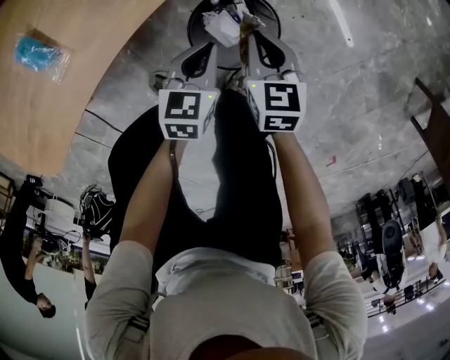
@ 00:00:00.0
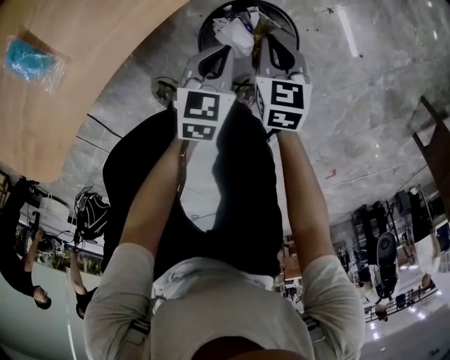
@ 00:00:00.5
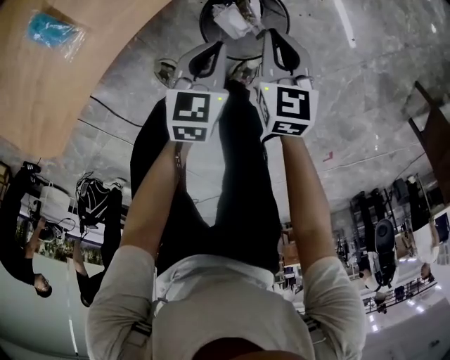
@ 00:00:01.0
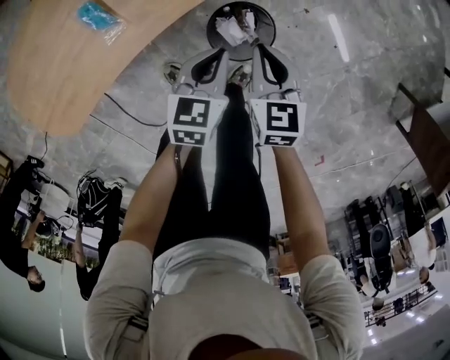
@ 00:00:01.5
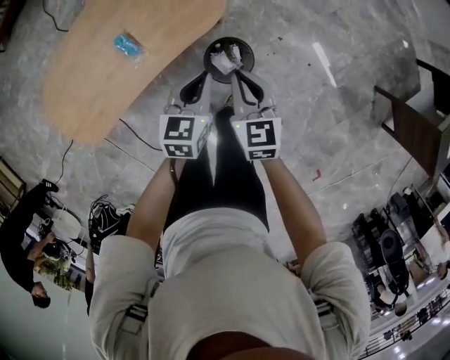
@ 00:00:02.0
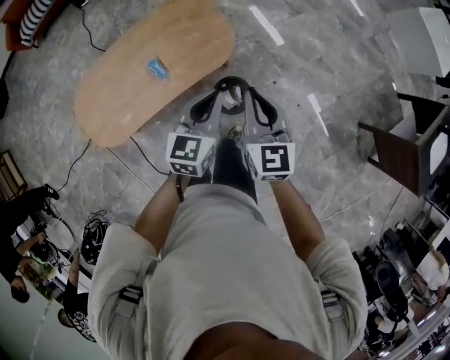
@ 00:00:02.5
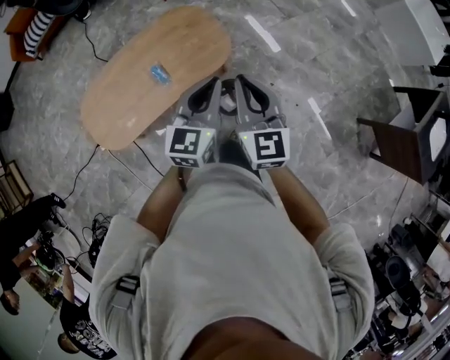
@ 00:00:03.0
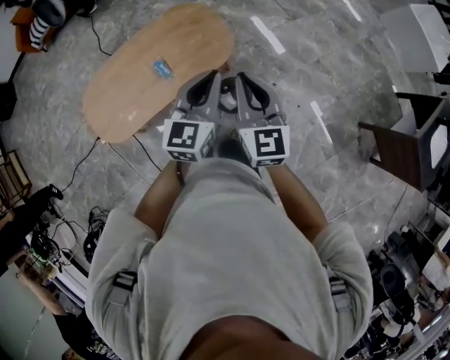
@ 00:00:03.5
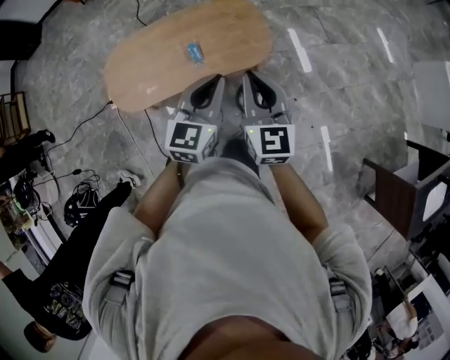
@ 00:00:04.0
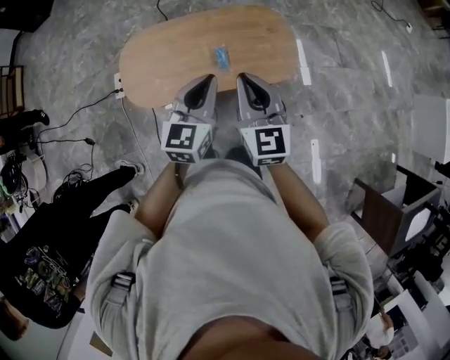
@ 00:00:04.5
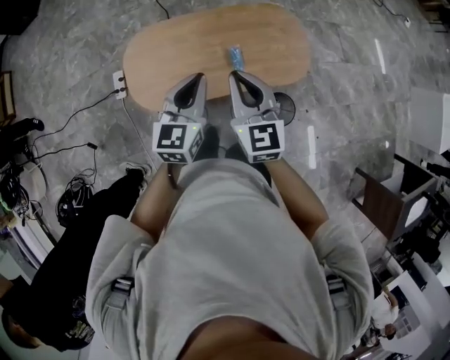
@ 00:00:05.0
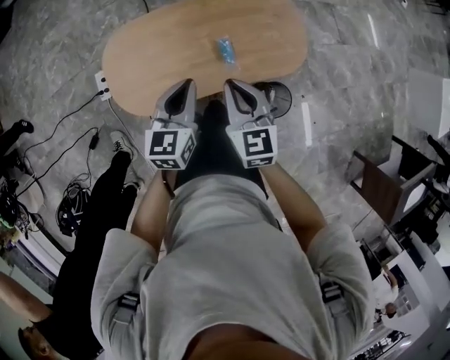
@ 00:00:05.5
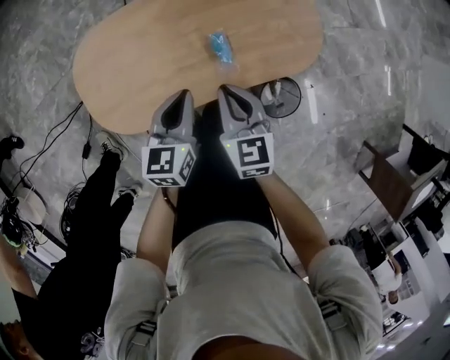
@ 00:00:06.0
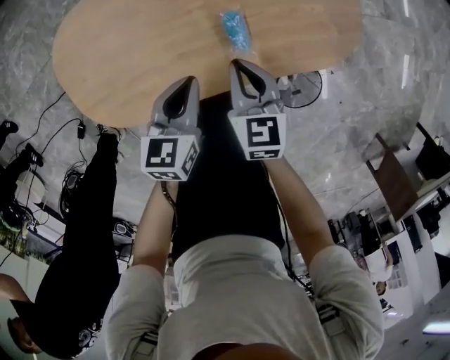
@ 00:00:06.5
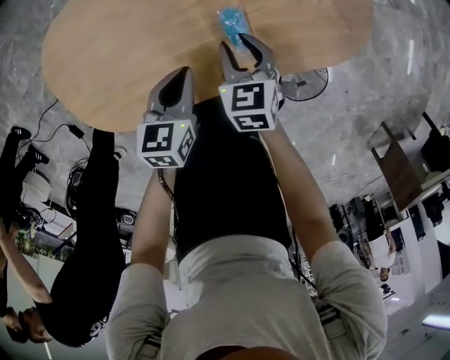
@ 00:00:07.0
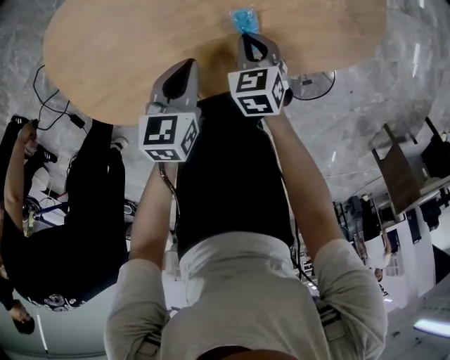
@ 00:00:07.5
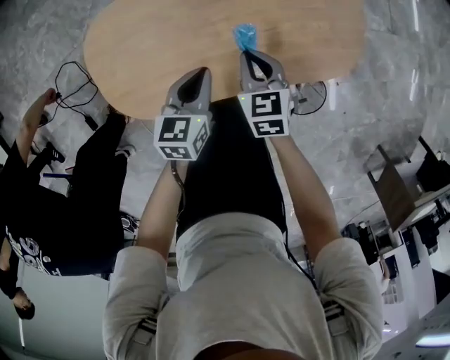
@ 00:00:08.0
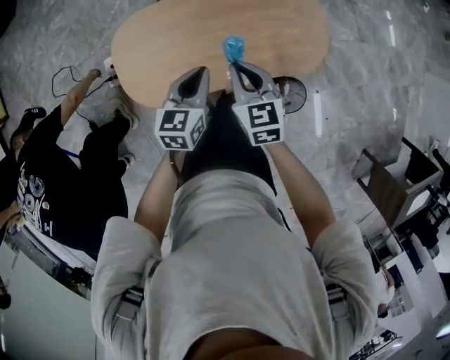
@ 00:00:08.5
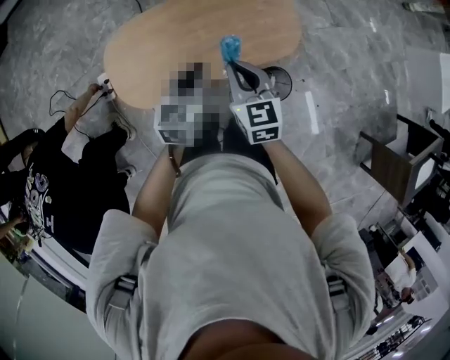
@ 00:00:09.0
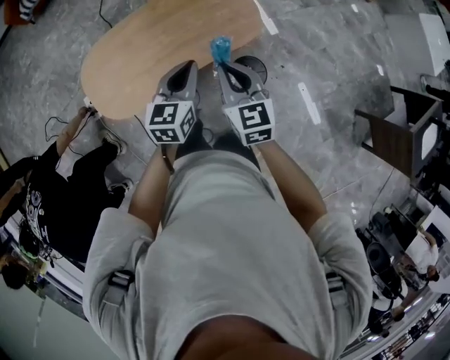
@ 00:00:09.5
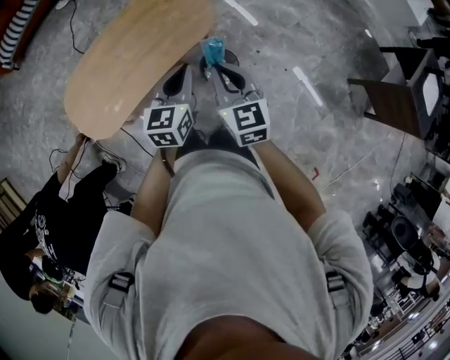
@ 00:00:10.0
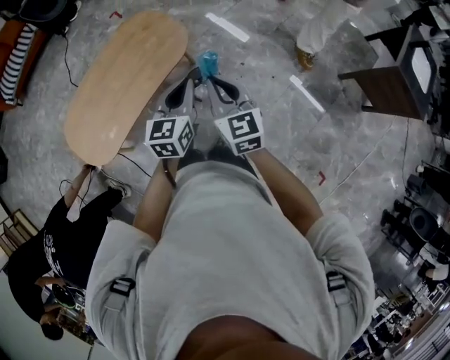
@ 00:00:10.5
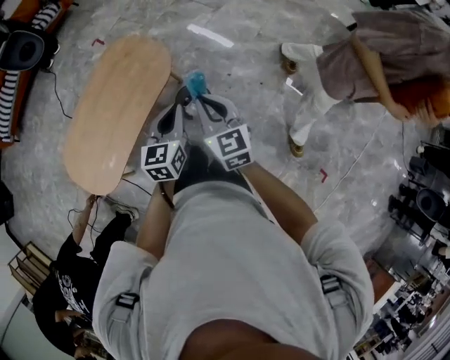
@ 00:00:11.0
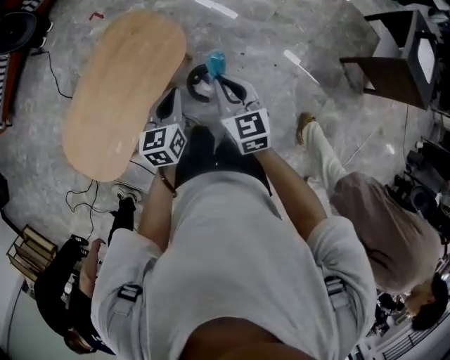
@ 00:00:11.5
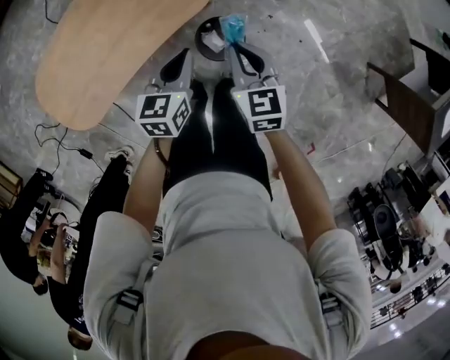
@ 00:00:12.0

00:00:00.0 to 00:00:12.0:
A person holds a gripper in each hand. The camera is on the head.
00:00:00.0 to 00:00:02.0: The two grippers go roughly 35 cm upward.
00:00:02.0 to 00:00:04.0: Both grippers move upward, roughly 30 cm. The left gripper swivels about 30 degrees, while the right gripper changes its angle by about 30 degrees.
00:00:04.0 to 00:00:06.0: The left gripper moves to the left, downward and forward, about 40 cm, and rotates some 30 degrees. Meanwhile the right gripper goes approximately 40 cm downward, to the left and forward, and rotates roughly 30 degrees.
00:00:06.0 to 00:00:08.0: The right gripper moves downward and forward, roughly 10 cm, and opens, then closes once more; the left gripper travels downward by roughly 5 cm.
00:00:08.0 to 00:00:10.0: The right gripper travels upward, to the right and backward by about 50 cm, and rotates approximately 40 degrees. The left gripper heads to the right, upward and backward, covering some 50 cm, and changes its angle by approximately 30 degrees.
00:00:10.0 to 00:00:12.0: The grippers both shift downward and forward by roughly 20 cm.

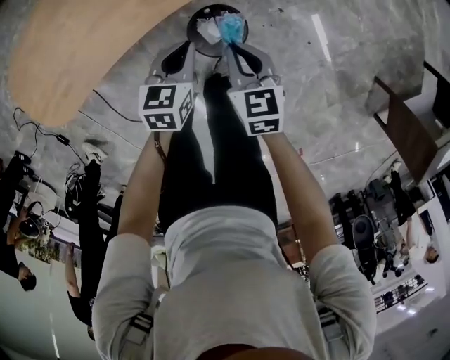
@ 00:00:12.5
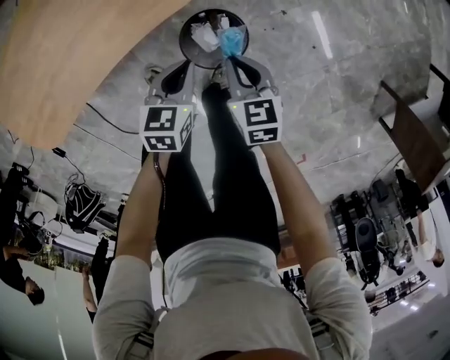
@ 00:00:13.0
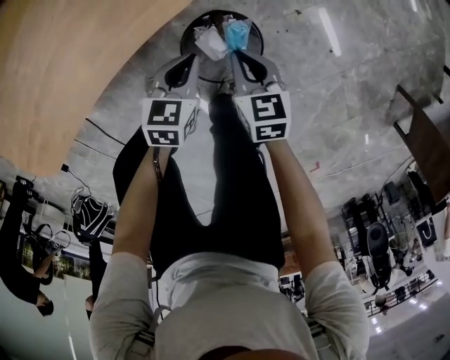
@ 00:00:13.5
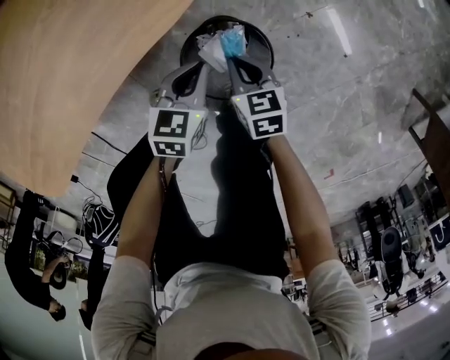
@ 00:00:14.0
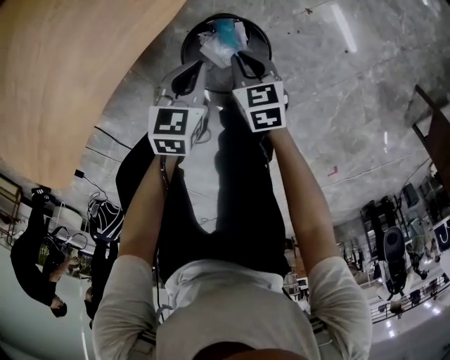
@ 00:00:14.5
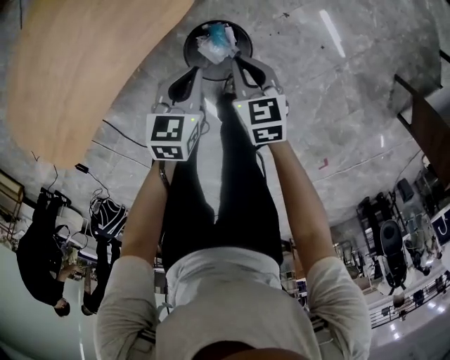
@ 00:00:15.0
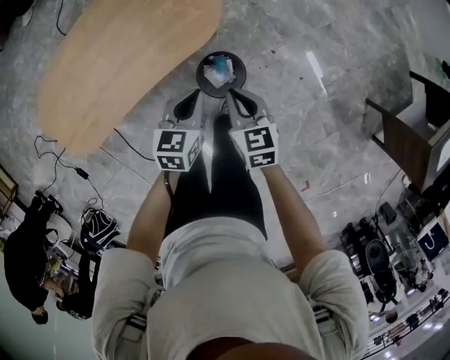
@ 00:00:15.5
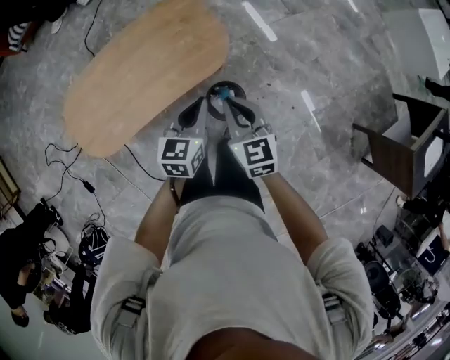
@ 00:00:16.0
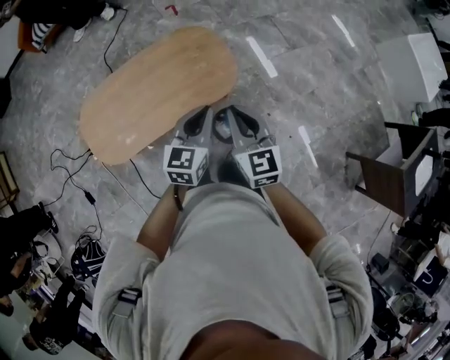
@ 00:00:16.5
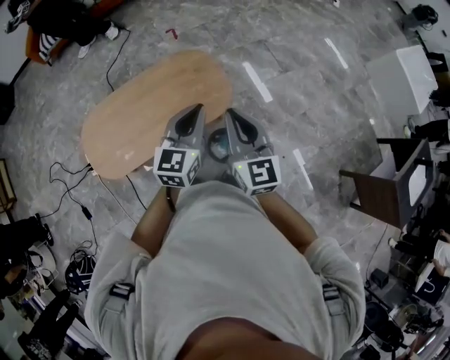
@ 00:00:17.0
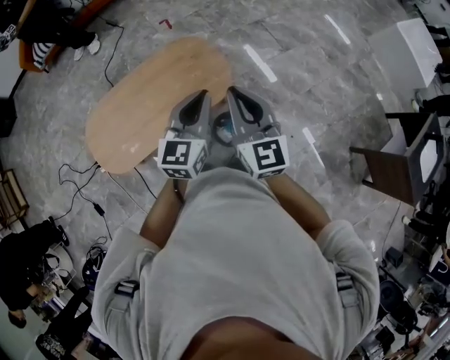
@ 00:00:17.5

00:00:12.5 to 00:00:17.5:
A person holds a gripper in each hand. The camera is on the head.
00:00:12.5 to 00:00:15.0: The right gripper moves downward, some 10 cm. Meanwhile the left gripper goes downward and returns, approximately 25 cm each way.
00:00:15.0 to 00:00:17.5: Both grippers travel together upward, about 60 cm. The left gripper tips its fingers upward by some 40 degrees. Meanwhile the right gripper angles its fingers upward, by approximately 40 degrees.

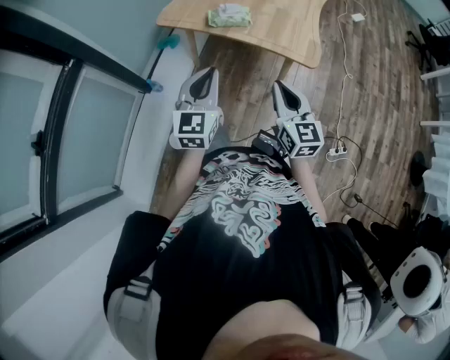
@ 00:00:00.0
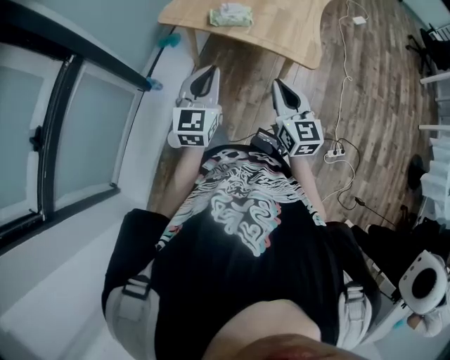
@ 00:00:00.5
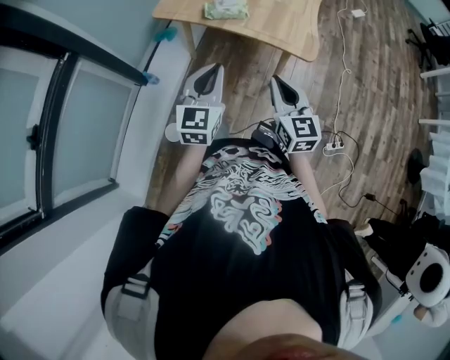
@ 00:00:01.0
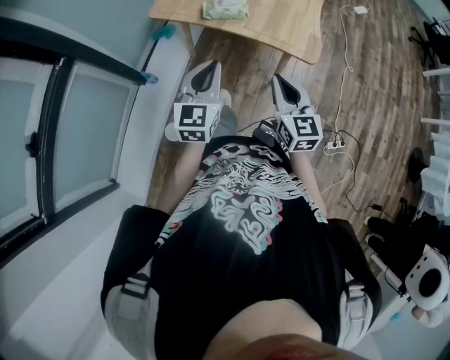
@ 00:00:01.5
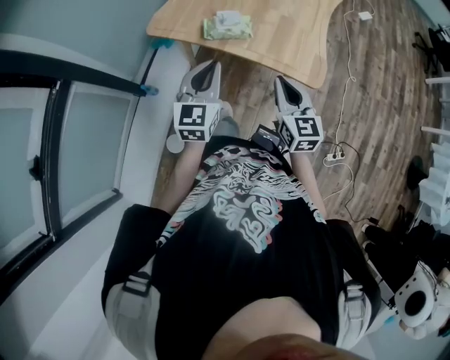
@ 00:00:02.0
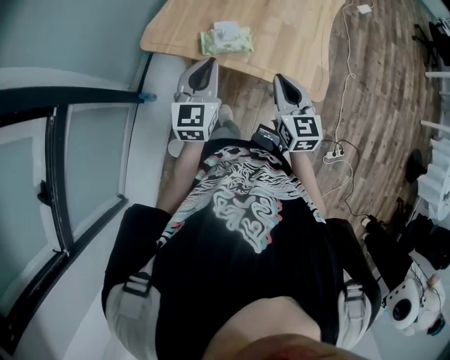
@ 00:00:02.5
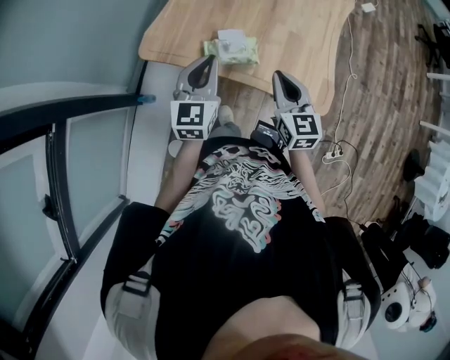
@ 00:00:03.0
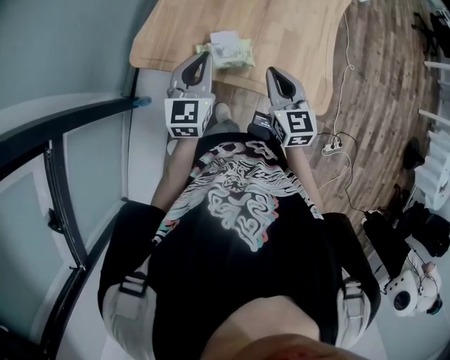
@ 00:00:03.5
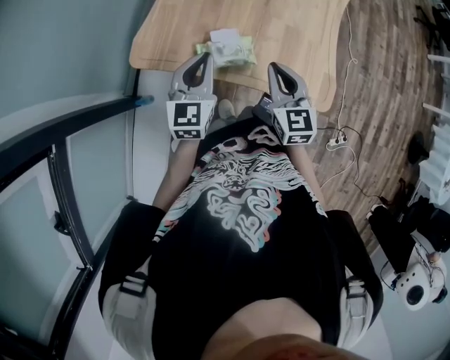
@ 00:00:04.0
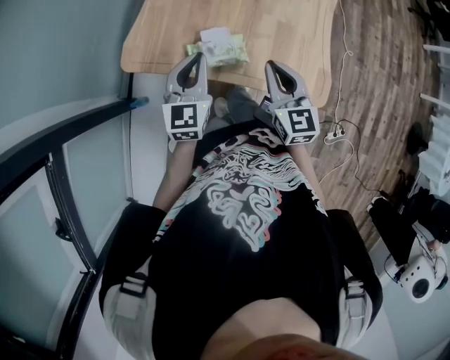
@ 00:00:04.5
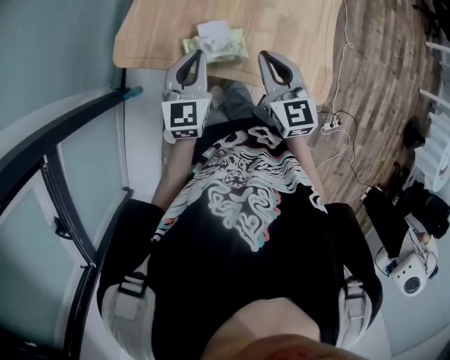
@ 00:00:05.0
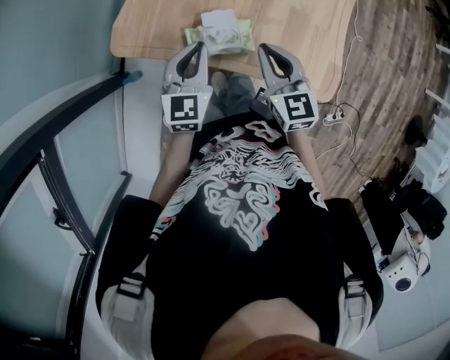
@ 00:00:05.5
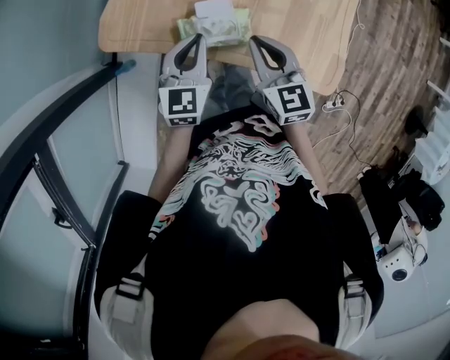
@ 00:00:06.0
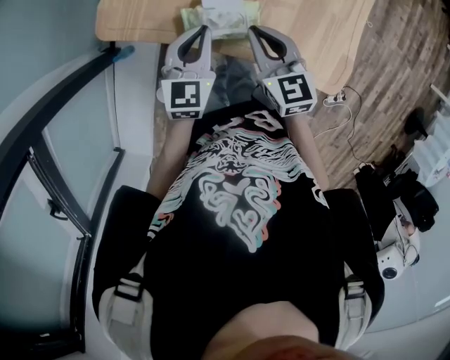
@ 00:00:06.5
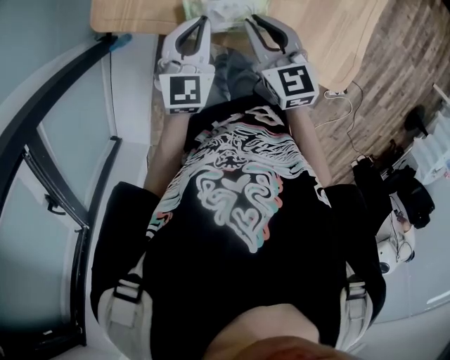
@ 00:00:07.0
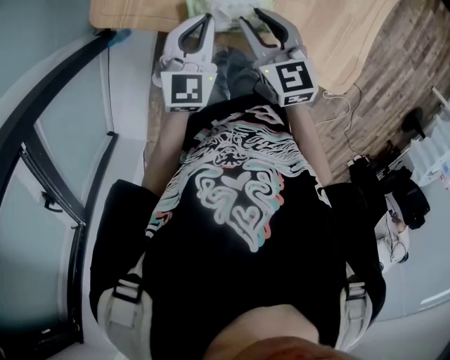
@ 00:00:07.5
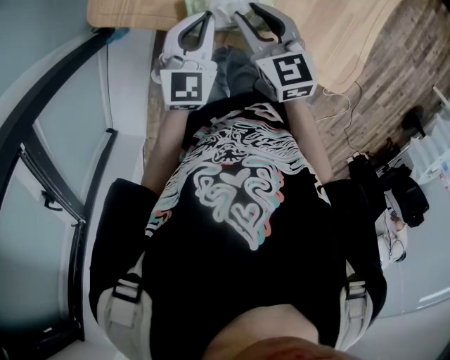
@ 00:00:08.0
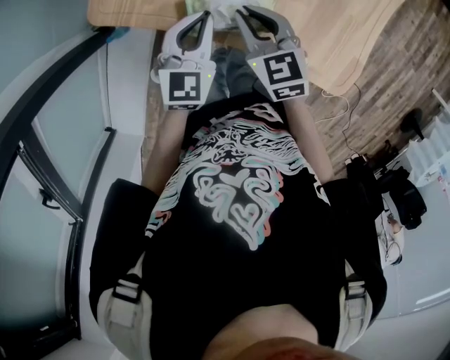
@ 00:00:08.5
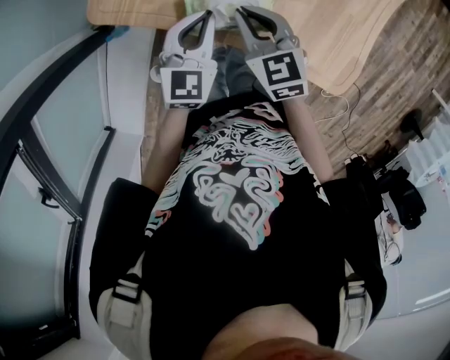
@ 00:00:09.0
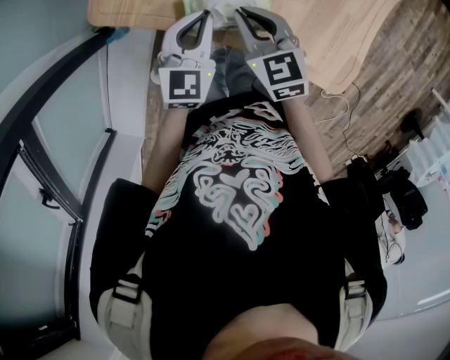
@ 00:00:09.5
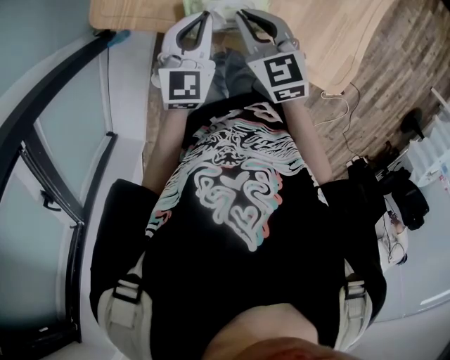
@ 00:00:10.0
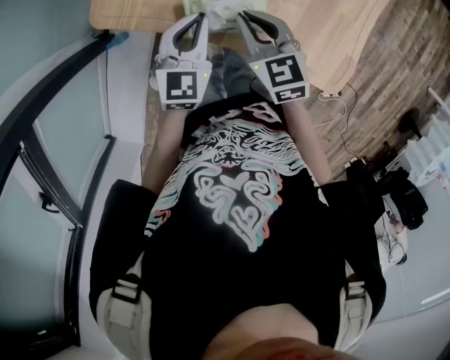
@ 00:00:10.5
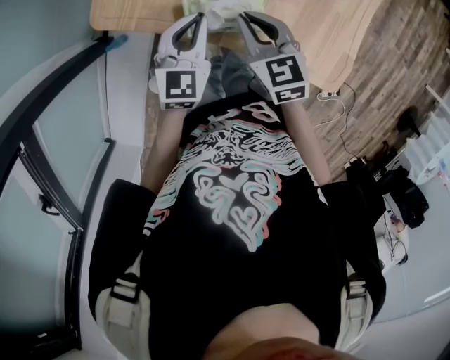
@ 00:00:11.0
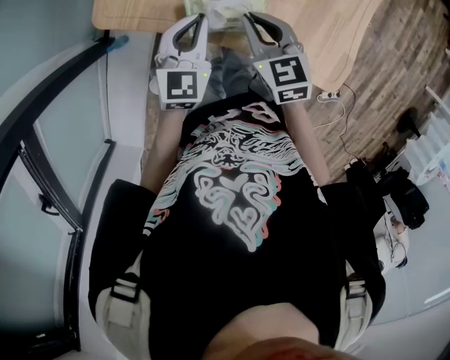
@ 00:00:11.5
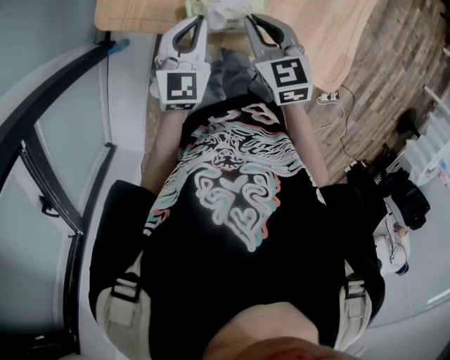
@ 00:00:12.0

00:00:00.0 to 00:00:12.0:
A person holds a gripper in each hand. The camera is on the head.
00:00:00.0 to 00:00:02.0: The two grippers go roughly 15 cm forward.
00:00:02.0 to 00:00:04.0: The grippers both shift forward by about 20 cm.
00:00:04.0 to 00:00:06.0: The right gripper heads downward and forward, covering approximately 10 cm, while the left gripper moves downward, some 10 cm.
00:00:06.0 to 00:00:08.0: The right gripper moves downward and to the left, approximately 10 cm, and opens up.
00:00:08.0 to 00:00:10.0: The right gripper closes.
00:00:10.0 to 00:00:12.0: The grippers move only a little.
